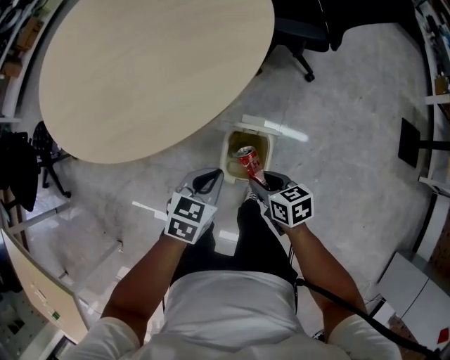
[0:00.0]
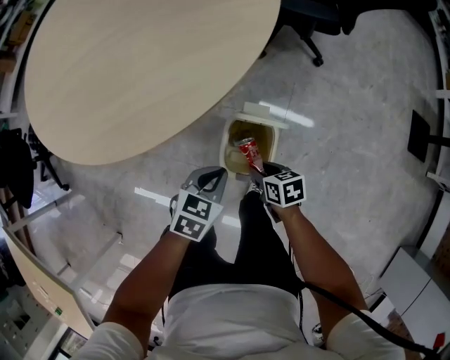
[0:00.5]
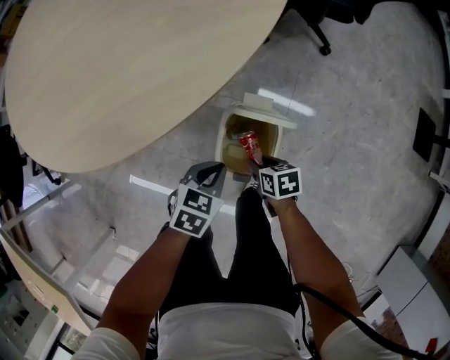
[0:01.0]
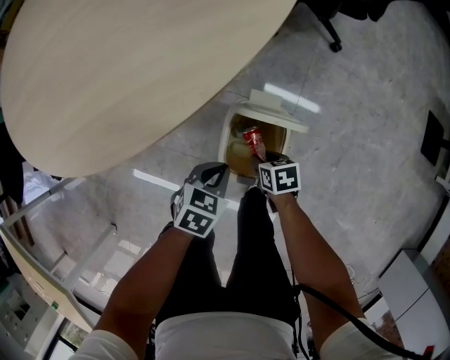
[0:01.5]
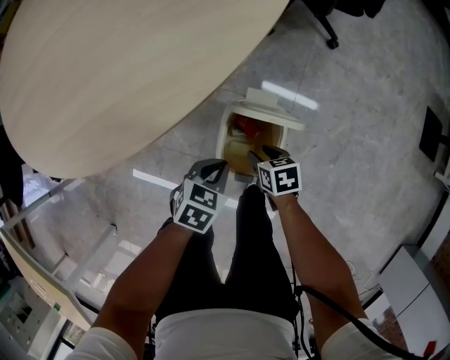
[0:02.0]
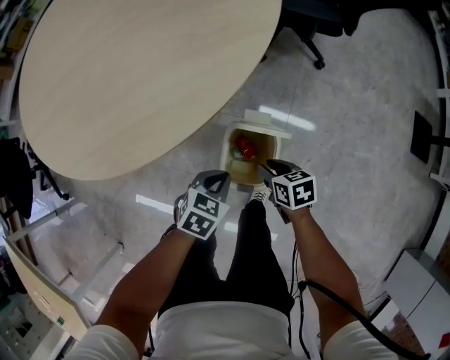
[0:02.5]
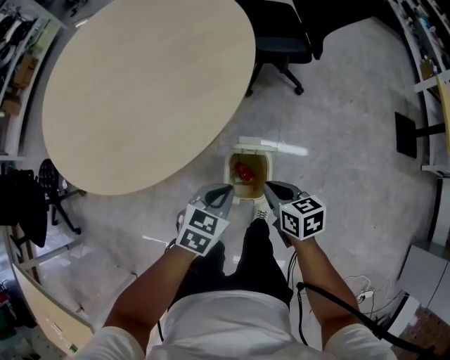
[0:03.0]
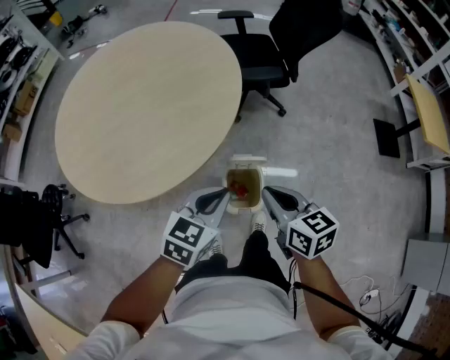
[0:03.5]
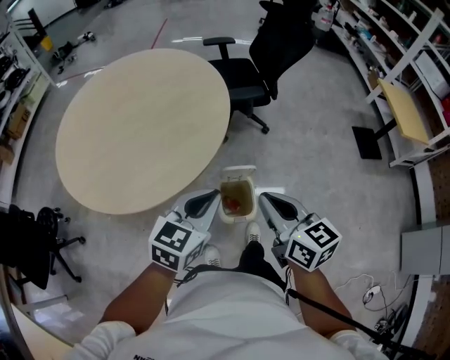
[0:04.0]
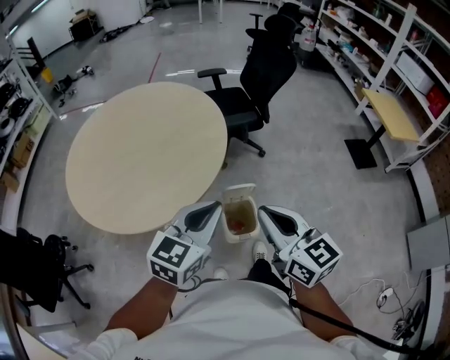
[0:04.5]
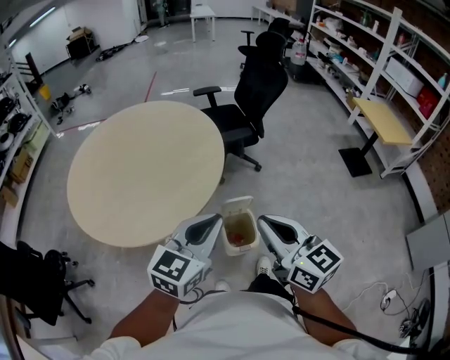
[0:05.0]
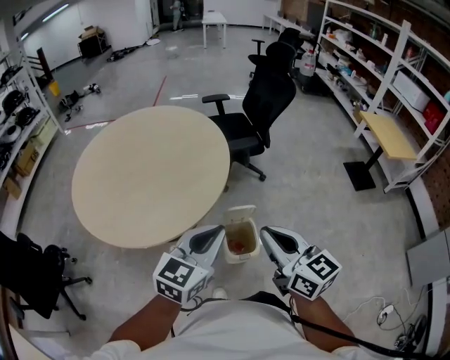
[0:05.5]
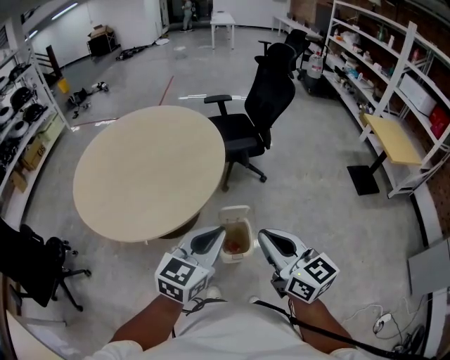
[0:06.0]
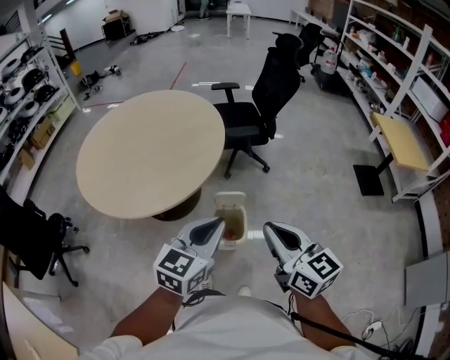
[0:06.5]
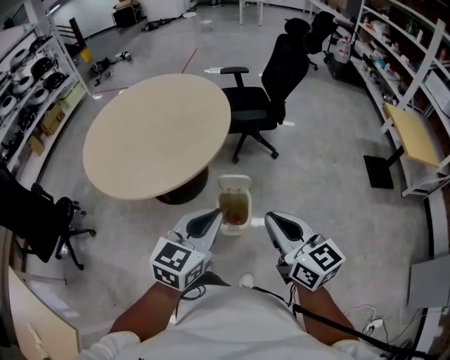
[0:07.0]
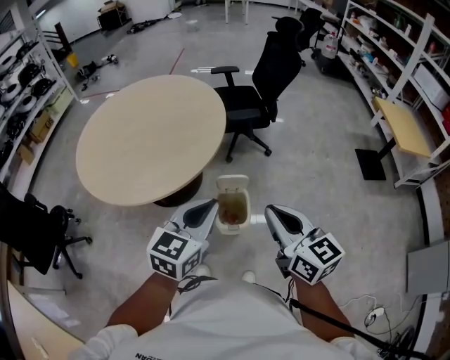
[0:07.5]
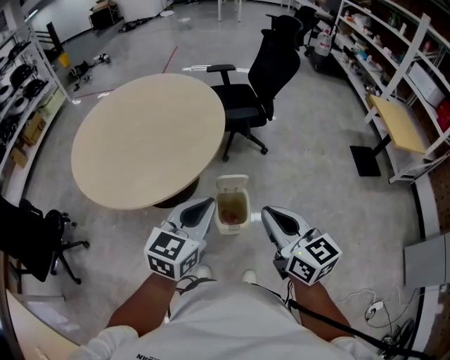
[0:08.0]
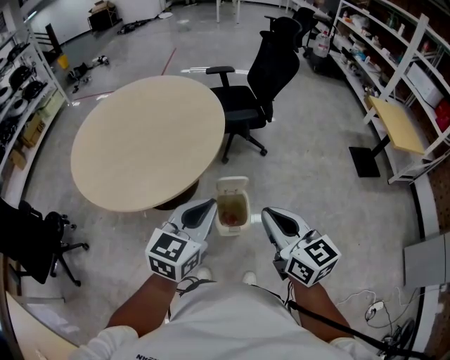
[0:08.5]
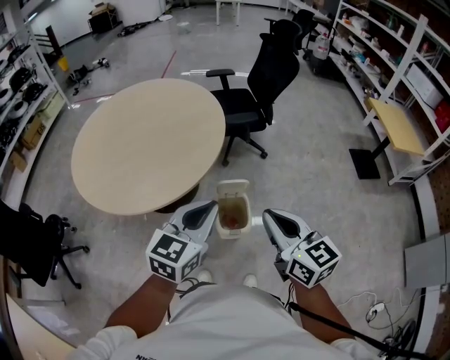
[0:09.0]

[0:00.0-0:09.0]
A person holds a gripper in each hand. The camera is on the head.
0:00.0 to 0:02.0: Both grippers travel together downward, roughly 20 cm.
0:02.0 to 0:04.5: The two grippers go about 50 cm upward. The left gripper angles its fingers upward, by about 40 degrees, while the right gripper points its fingers some 50 degrees further upward, and closes up.
0:04.5 to 0:07.0: The grippers both shift to the right and backward by roughly 10 cm.
0:07.0 to 0:09.0: The left gripper shifts by roughly 5 cm; the right gripper shifts by some 5 cm.

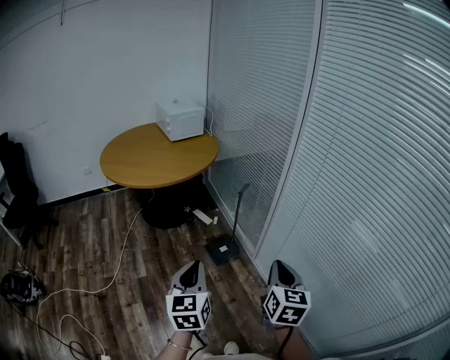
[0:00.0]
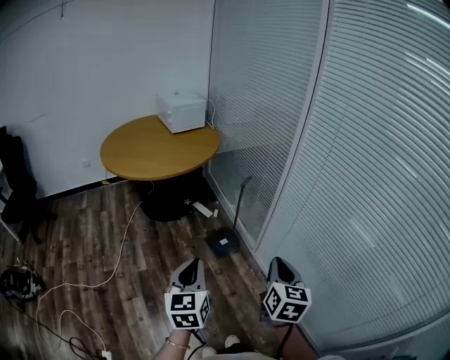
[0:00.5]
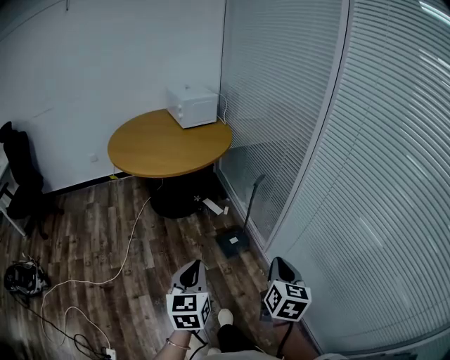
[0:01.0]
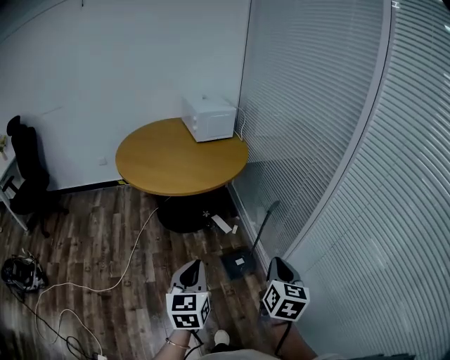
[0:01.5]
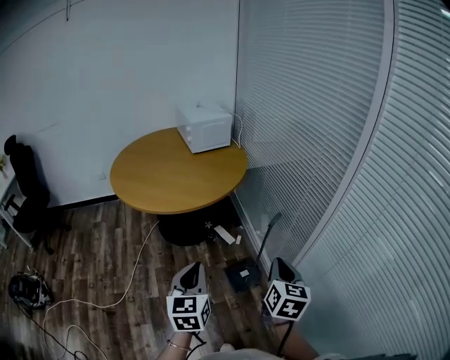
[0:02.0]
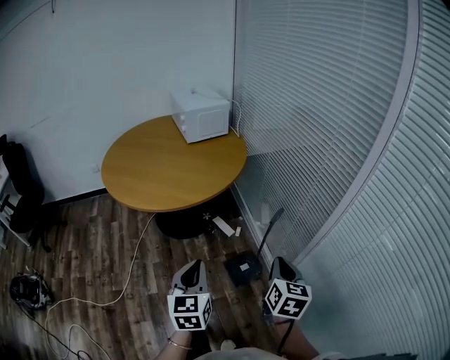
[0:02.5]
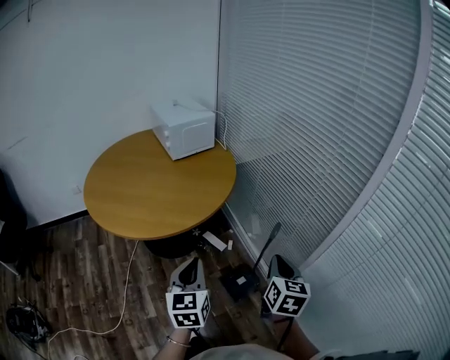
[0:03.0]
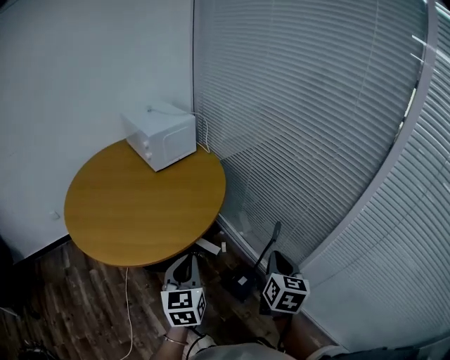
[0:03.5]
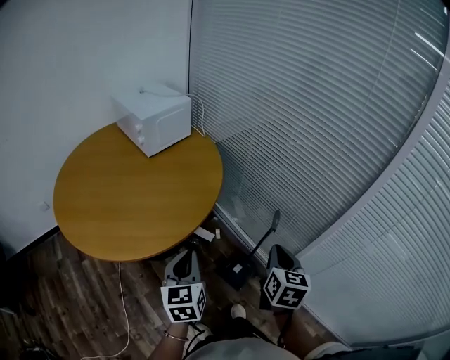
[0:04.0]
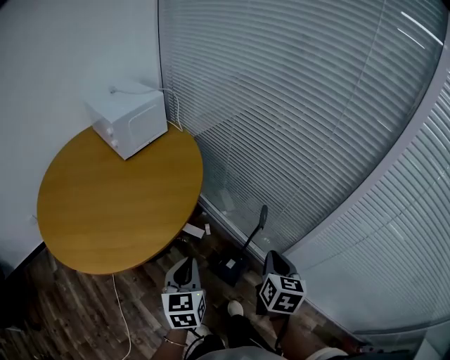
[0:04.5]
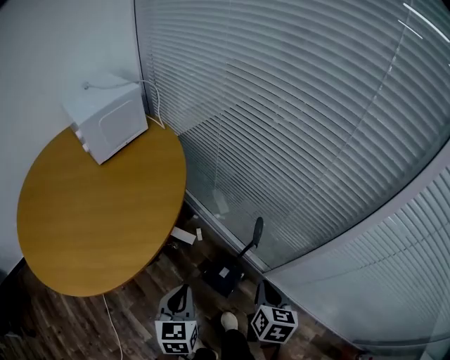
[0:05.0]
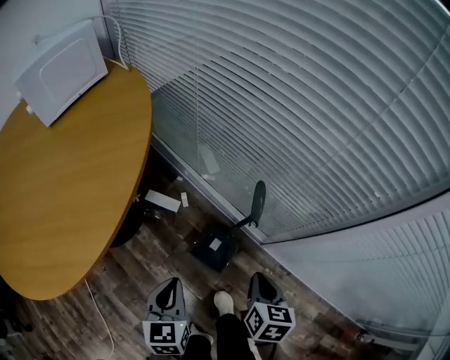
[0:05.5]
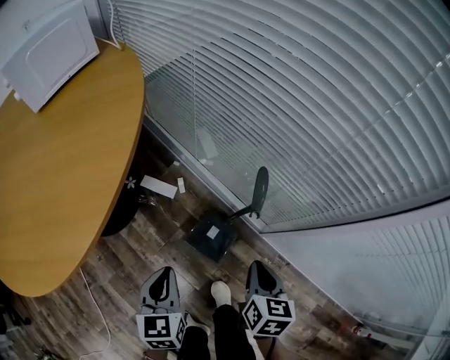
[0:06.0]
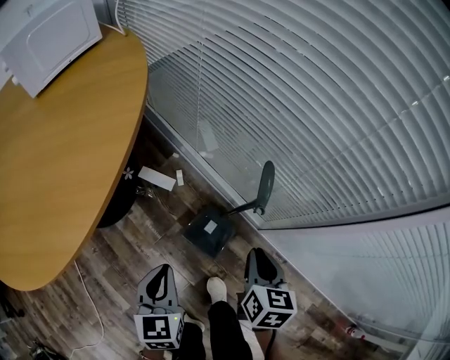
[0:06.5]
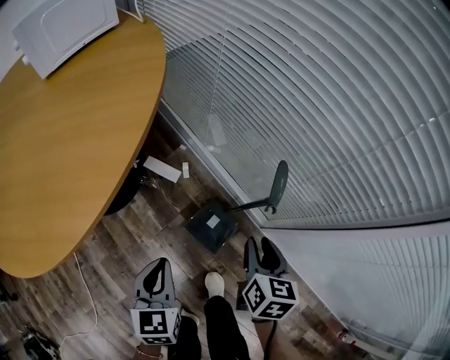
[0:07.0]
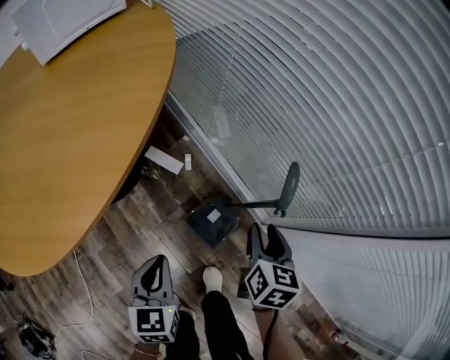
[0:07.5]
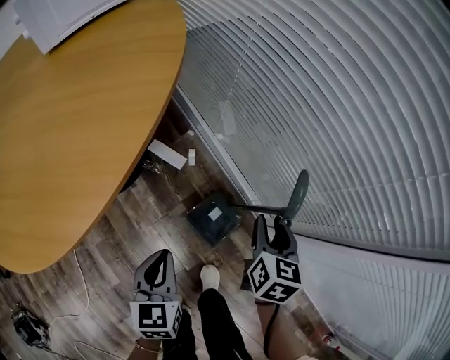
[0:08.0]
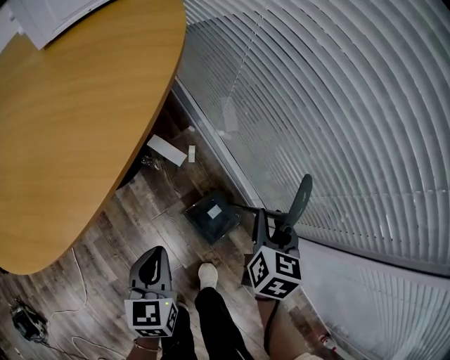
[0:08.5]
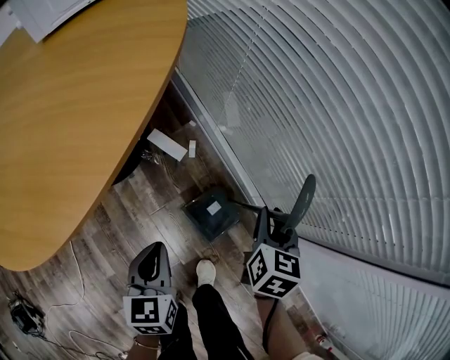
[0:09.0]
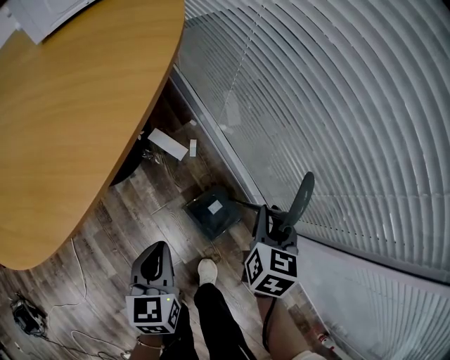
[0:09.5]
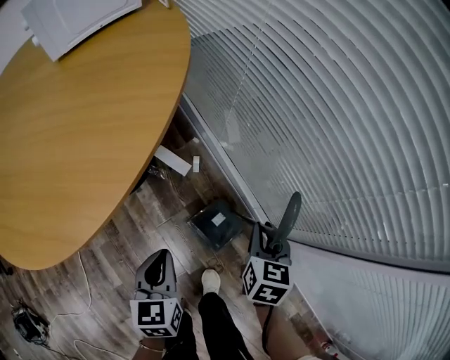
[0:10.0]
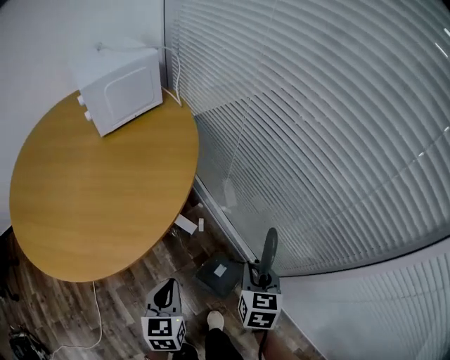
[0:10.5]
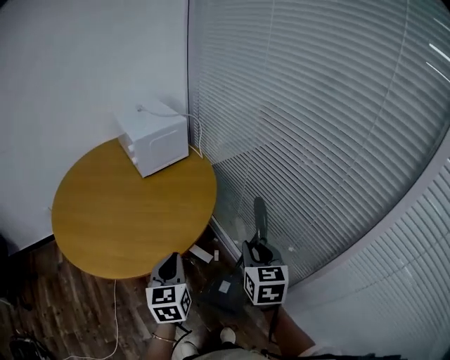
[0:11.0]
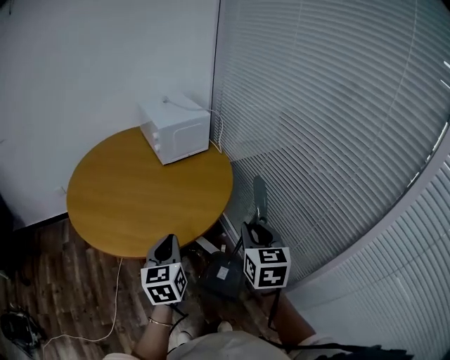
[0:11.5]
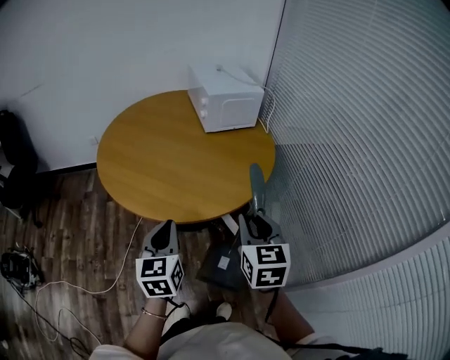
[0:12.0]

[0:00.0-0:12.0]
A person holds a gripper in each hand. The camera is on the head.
0:00.0 to 0:02.0: The grippers both shift forward by approximately 25 cm.
0:02.0 to 0:04.0: The grippers both shift forward and to the left by about 20 cm. The right gripper turns by some 20 degrees.
0:04.0 to 0:06.0: The left gripper is displaced downward and to the right by about 30 cm, while the right gripper heads downward, covering approximately 30 cm, and turns by roughly 20 degrees.
0:06.0 to 0:08.0: The right gripper heads forward, covering some 15 cm, and opens its fingers.
0:08.0 to 0:10.0: There are only small adjustments of the grippers.
0:10.0 to 0:12.0: The grippers both shift upward by about 35 cm. The left gripper changes its angle by some 30 degrees. Meanwhile the right gripper changes its angle by approximately 50 degrees.

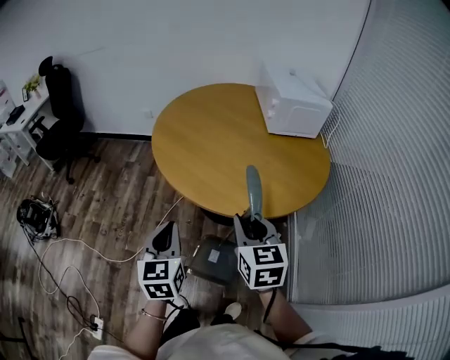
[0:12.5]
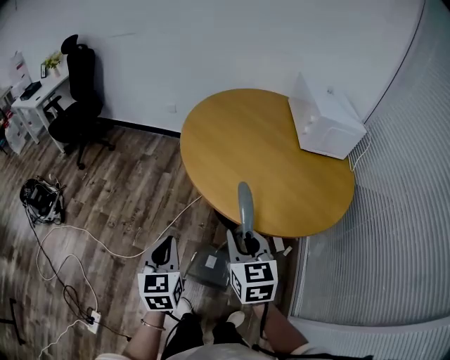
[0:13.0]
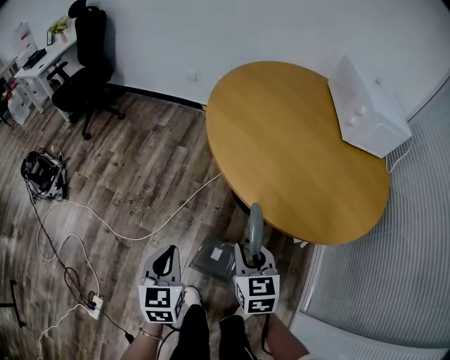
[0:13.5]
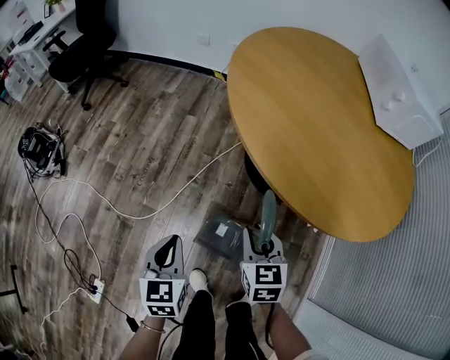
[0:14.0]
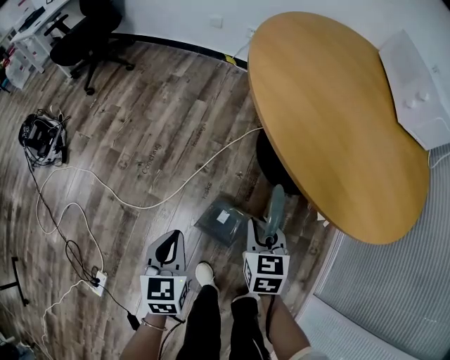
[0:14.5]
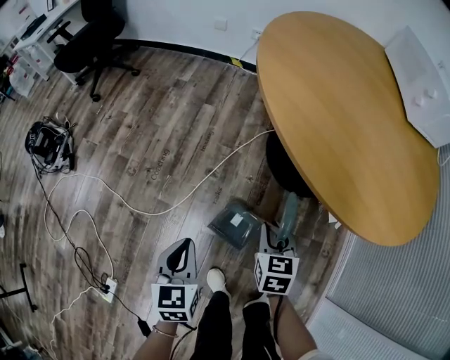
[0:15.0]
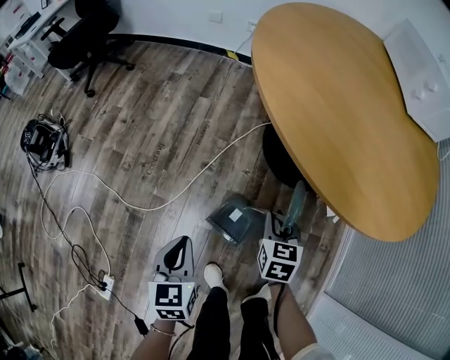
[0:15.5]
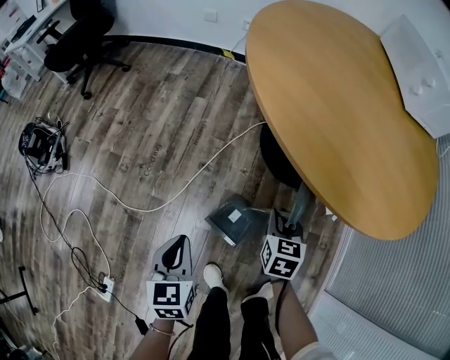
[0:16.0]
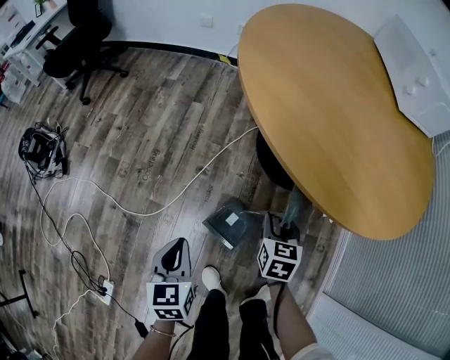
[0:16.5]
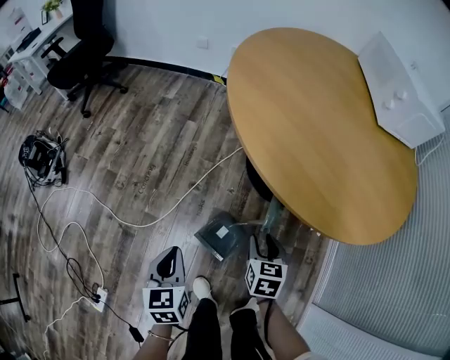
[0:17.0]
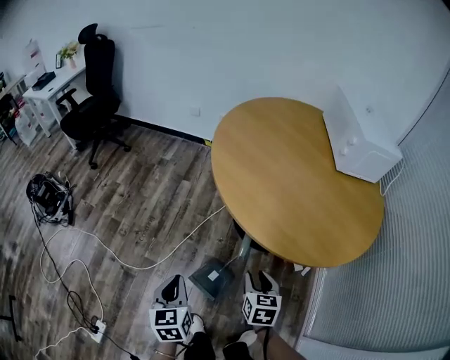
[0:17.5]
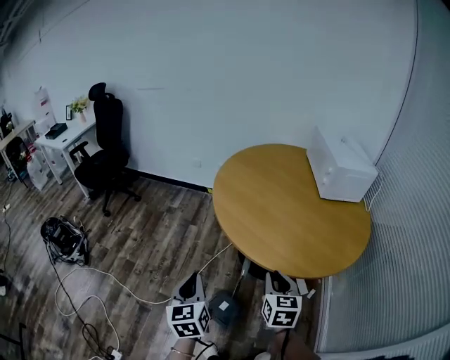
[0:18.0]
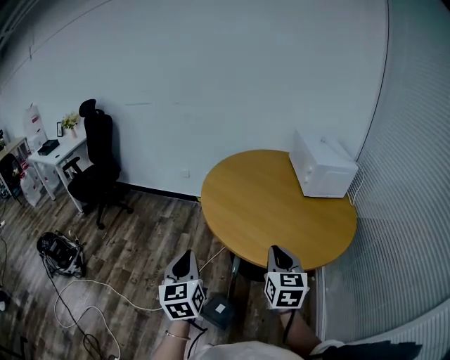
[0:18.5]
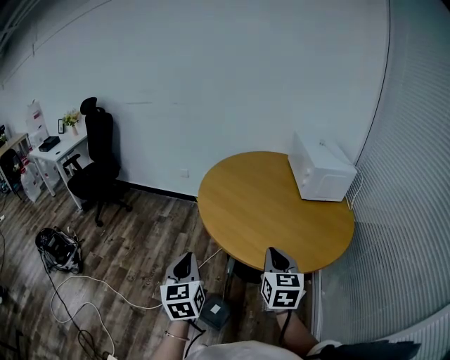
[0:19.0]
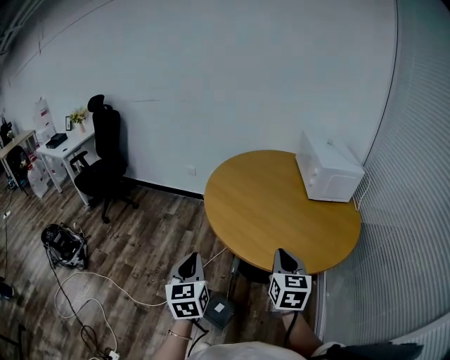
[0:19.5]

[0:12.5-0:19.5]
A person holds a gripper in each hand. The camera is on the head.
0:12.5 to 0:14.5: The grippers both shift downward and to the left by about 35 cm. The left gripper swivels some 20 degrees; the right gripper rotates some 20 degrees.
0:14.5 to 0:16.0: The right gripper heads downward and to the right, covering about 10 cm.
0:16.0 to 0:17.5: The left gripper is displaced upward by some 10 cm. The right gripper travels upward and backward by roughly 10 cm.
0:17.5 to 0:19.5: The grippers both shift upward by approximately 20 cm. The right gripper turns by about 20 degrees, and closes its fingers.
